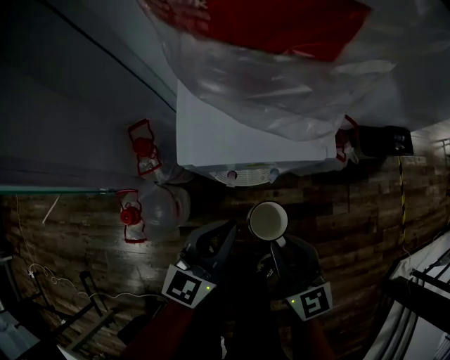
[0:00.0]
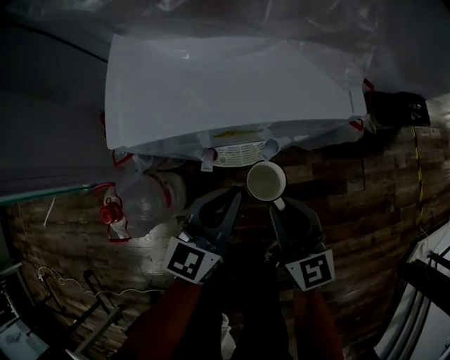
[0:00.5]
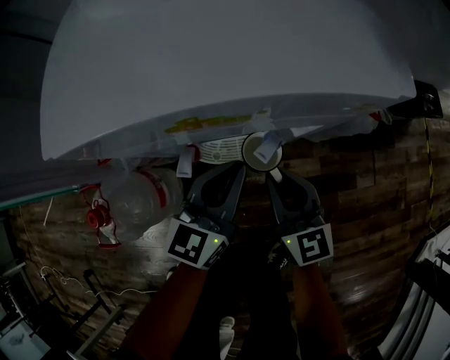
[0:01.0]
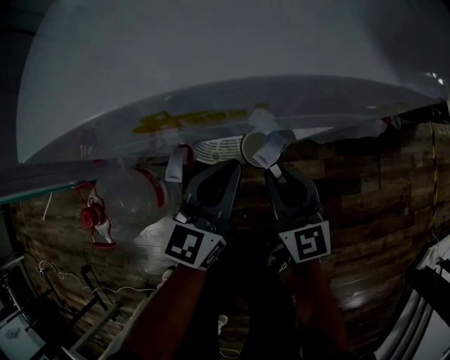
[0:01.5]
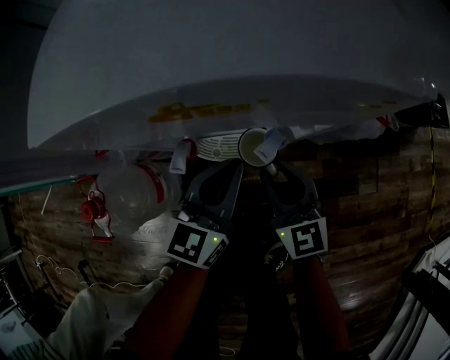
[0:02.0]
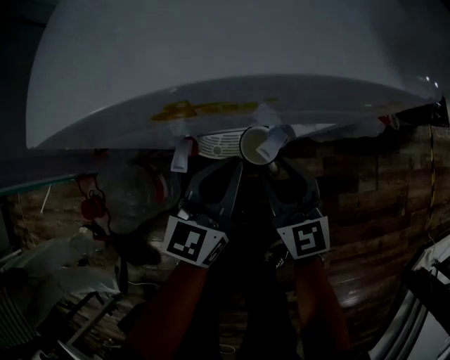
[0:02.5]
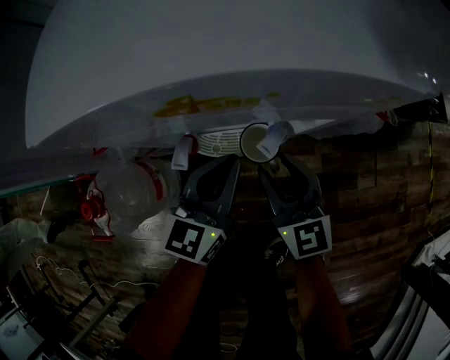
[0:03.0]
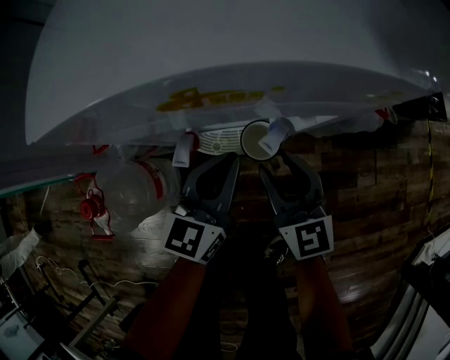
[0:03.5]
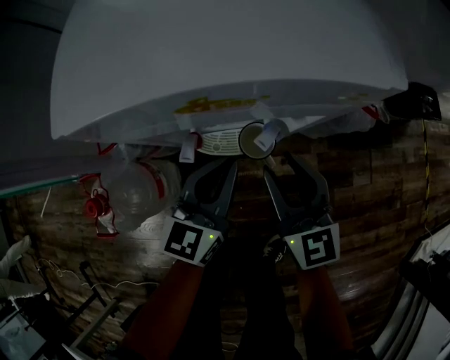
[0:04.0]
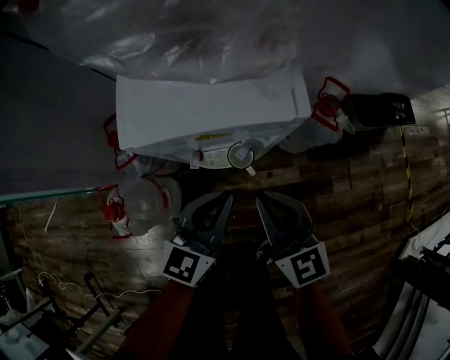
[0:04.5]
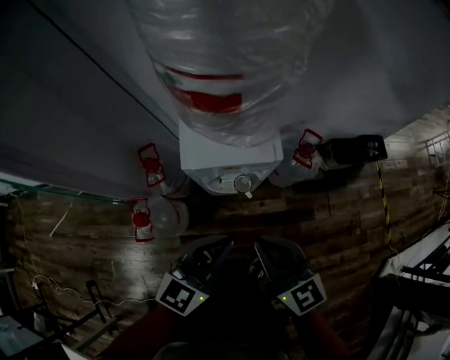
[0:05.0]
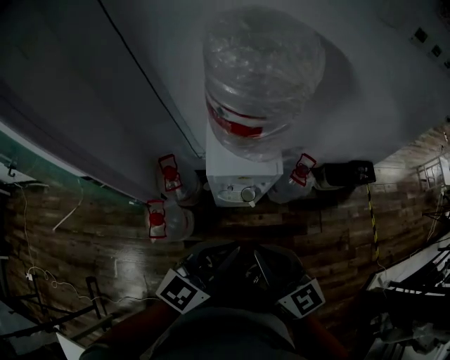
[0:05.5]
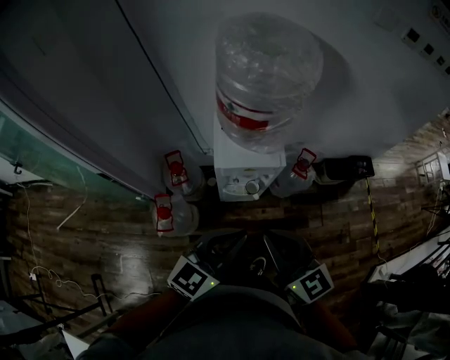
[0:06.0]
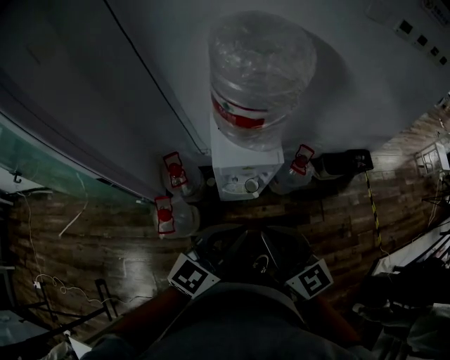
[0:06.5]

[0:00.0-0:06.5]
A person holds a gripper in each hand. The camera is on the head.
0:00.0 to 0:02.0: Both grippers move downward and forward, roughly 25 cm.
0:02.0 to 0:04.5: The right gripper travels upward by approximately 20 cm, and closes its fingers; the left gripper travels upward and backward by some 15 cm.
0:04.5 to 0:06.5: Both grippers travel together upward and backward, approximately 40 cm.

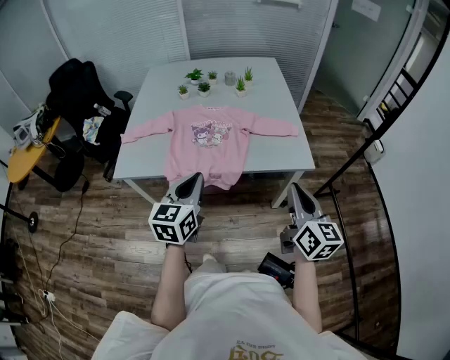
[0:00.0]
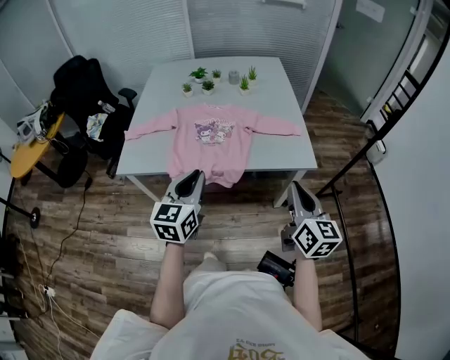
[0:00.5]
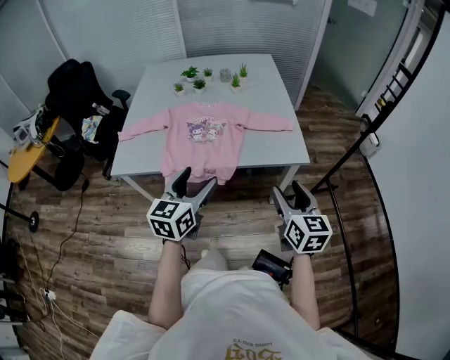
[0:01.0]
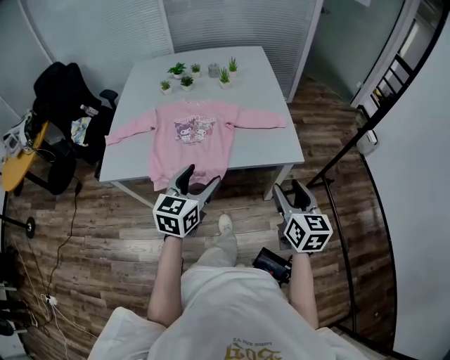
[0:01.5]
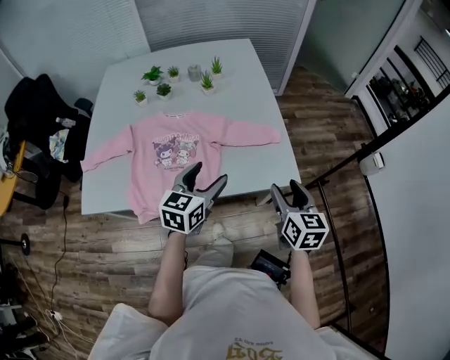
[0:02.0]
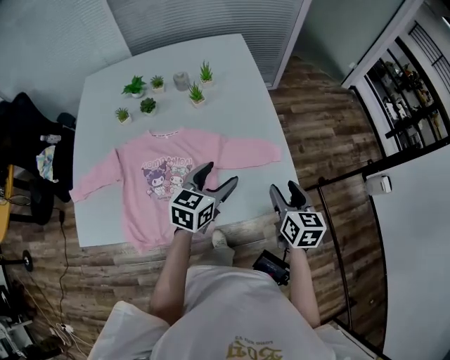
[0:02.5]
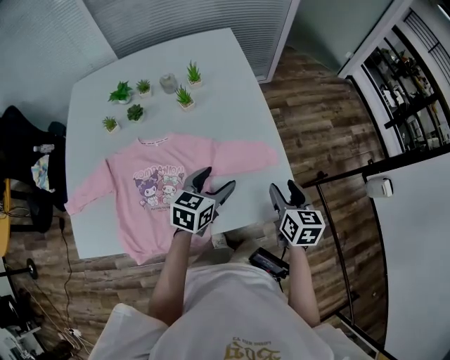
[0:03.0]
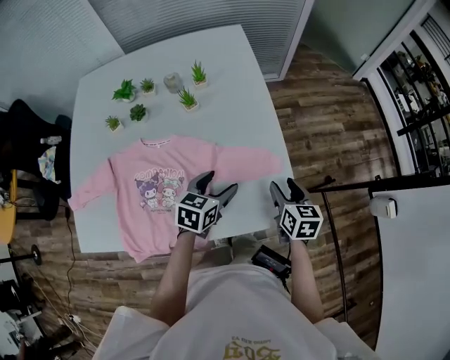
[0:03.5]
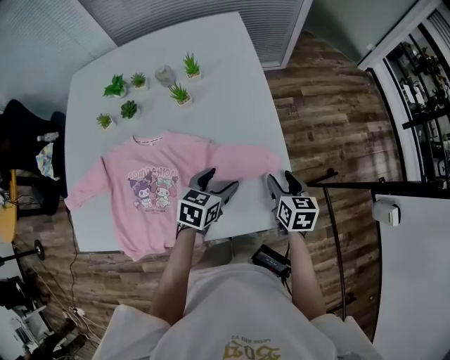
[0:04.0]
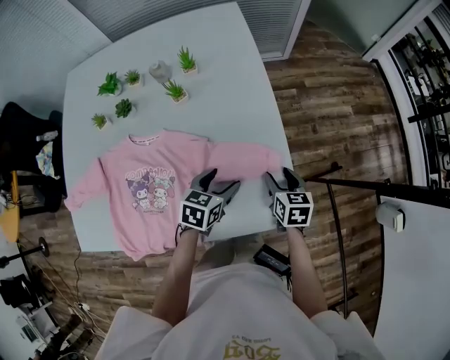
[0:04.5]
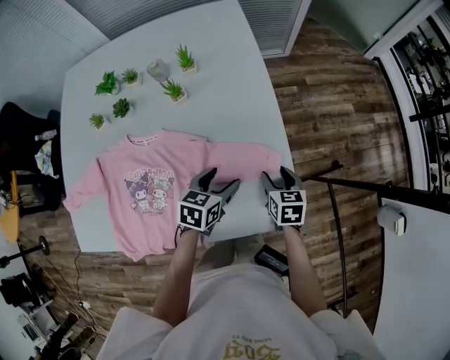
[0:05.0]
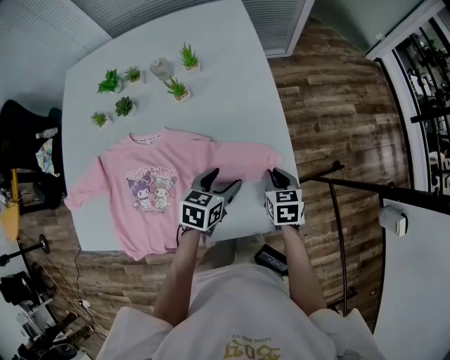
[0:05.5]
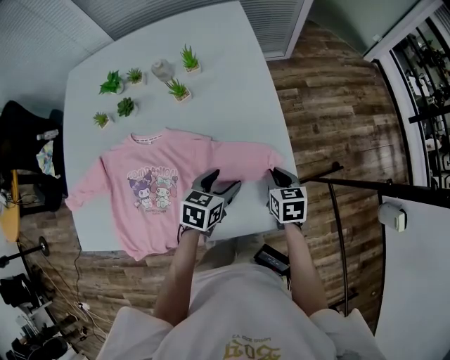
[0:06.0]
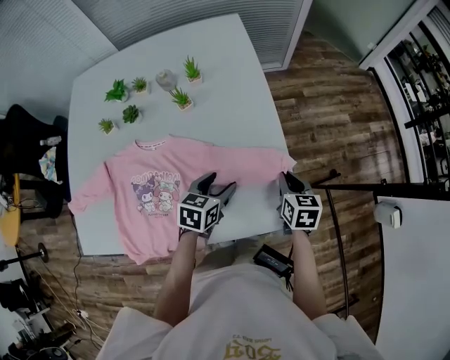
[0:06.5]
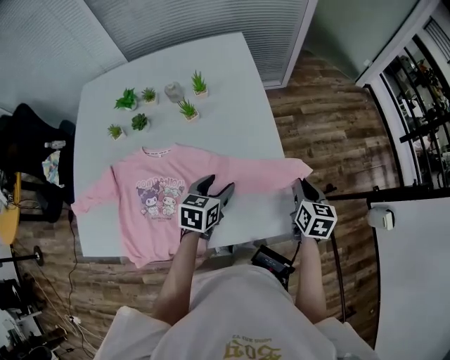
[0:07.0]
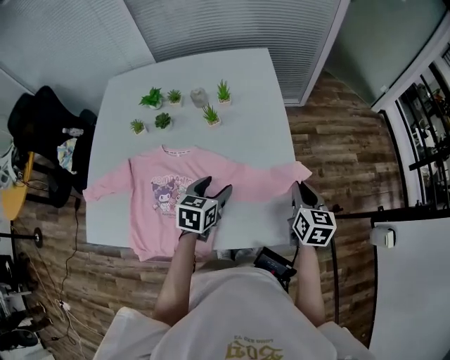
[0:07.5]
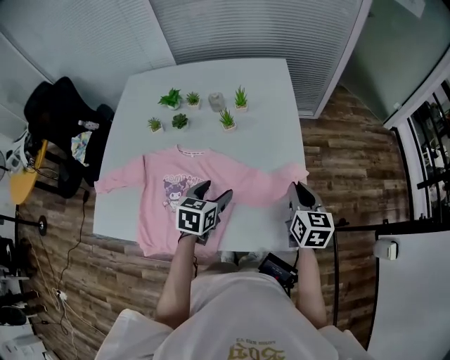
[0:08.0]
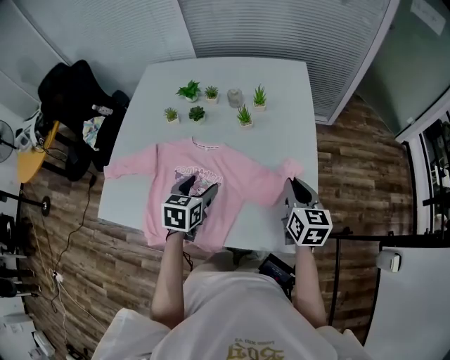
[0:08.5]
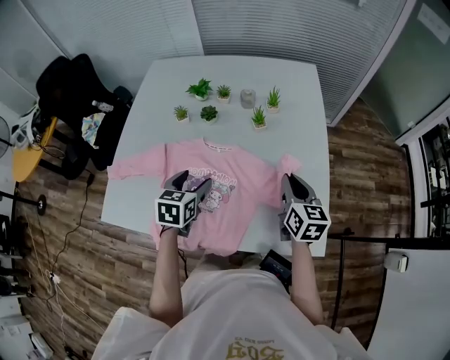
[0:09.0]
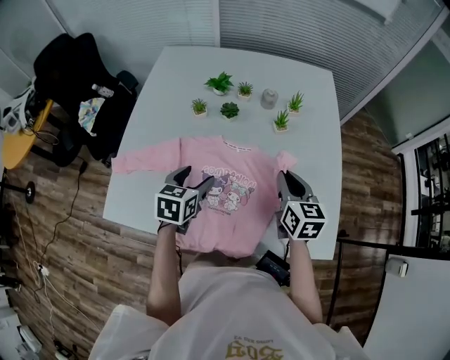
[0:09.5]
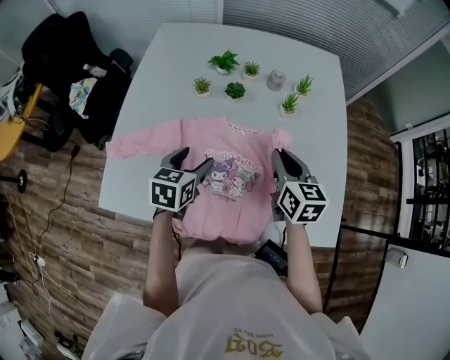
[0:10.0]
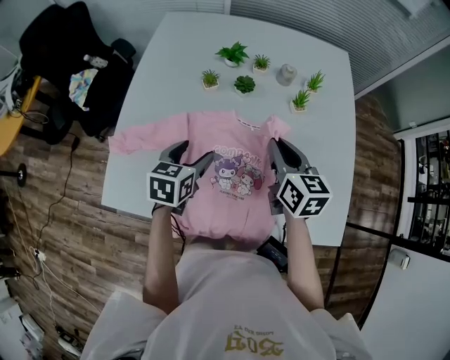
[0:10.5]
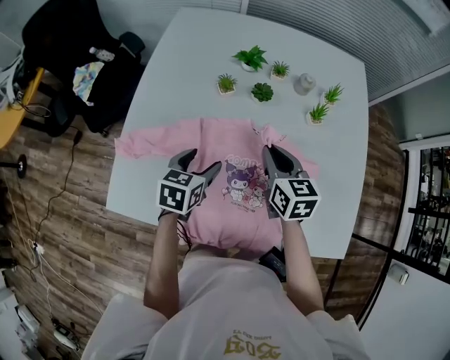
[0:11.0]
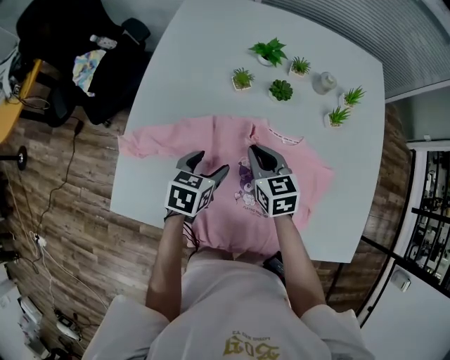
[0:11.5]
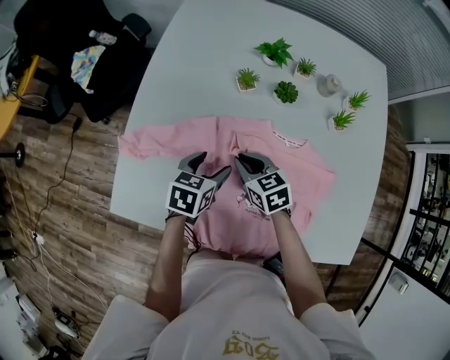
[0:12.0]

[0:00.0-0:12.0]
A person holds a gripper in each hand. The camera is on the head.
0:00.0 to 0:02.0: The left gripper goes some 25 cm forward and to the right, and opens; the right gripper moves forward and downward, some 20 cm, turns by some 20 degrees, and opens its fingers.
0:02.0 to 0:04.0: Both grippers travel together forward and downward, about 25 cm. The left gripper swivels some 20 degrees.
0:04.0 to 0:06.0: The right gripper ends up roughly 5 cm from where it was, and closes.
0:06.0 to 0:08.0: The right gripper heads upward, covering about 20 cm, and turns by some 20 degrees, while the left gripper moves upward and to the left, approximately 15 cm.
0:08.0 to 0:10.0: Both grippers travel together to the left, approximately 30 cm.
0:10.0 to 0:12.0: The left gripper shifts approximately 15 cm downward and to the left. Meanwhile the right gripper is displaced to the left and downward by roughly 30 cm, and swivels some 40 degrees.

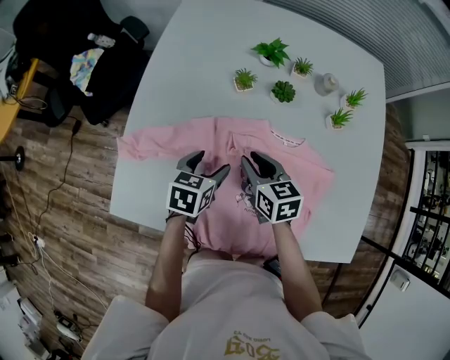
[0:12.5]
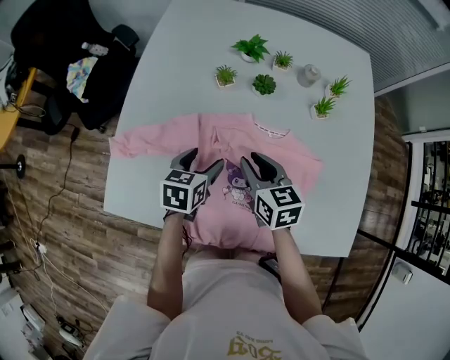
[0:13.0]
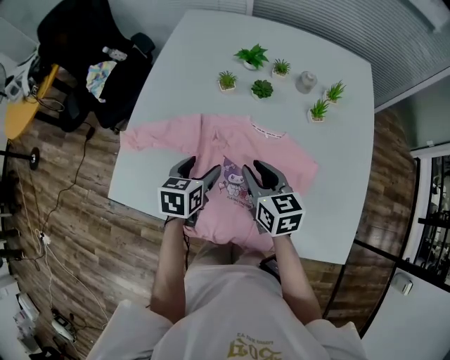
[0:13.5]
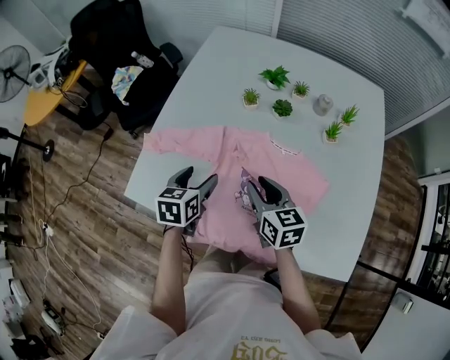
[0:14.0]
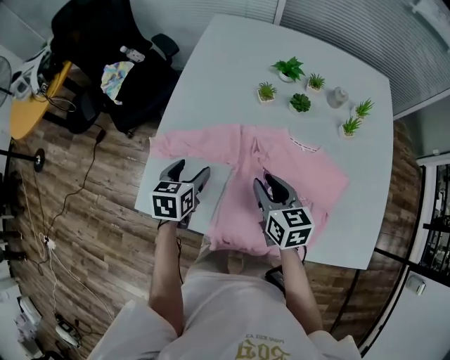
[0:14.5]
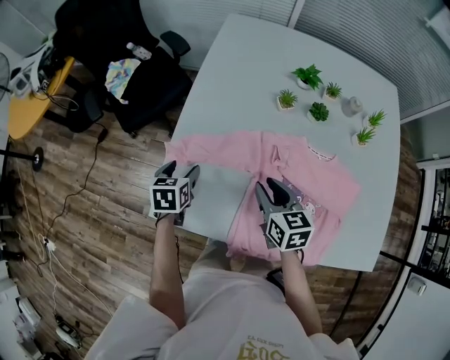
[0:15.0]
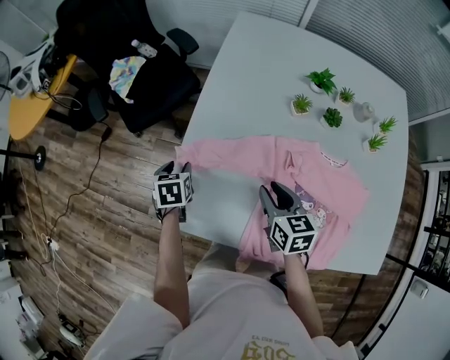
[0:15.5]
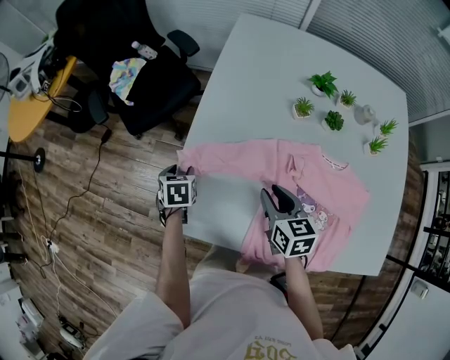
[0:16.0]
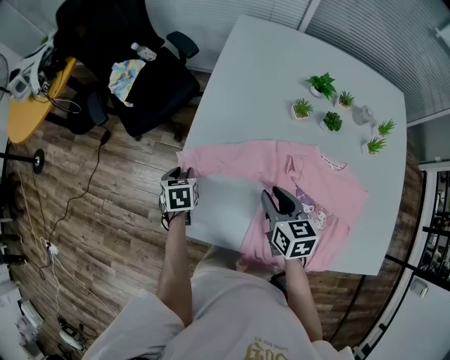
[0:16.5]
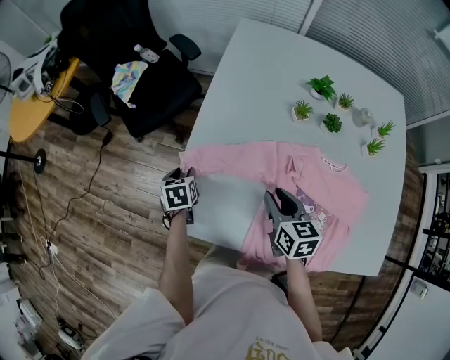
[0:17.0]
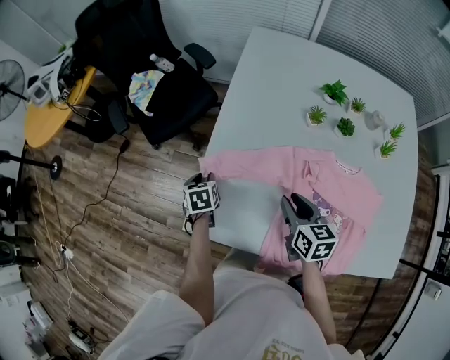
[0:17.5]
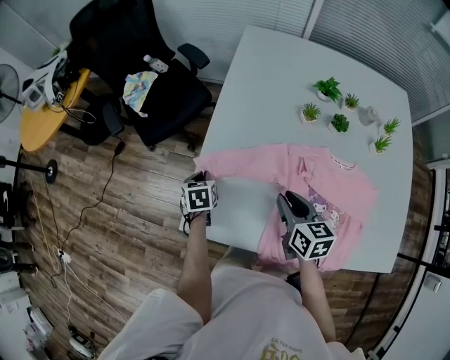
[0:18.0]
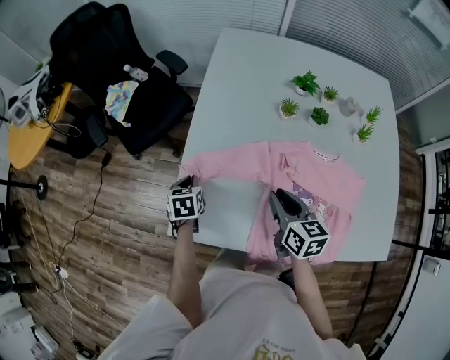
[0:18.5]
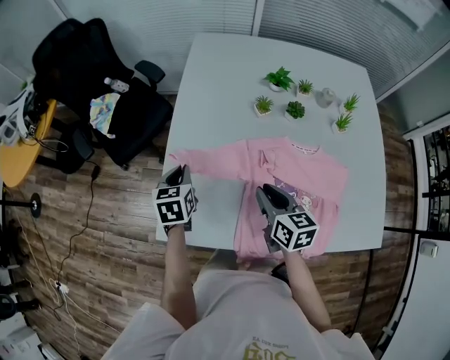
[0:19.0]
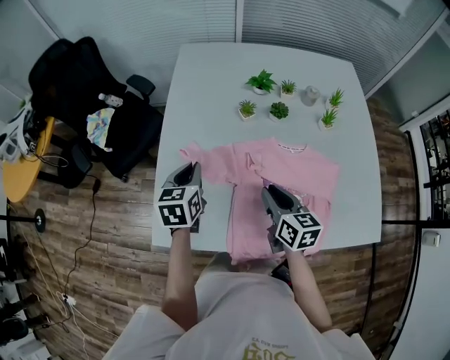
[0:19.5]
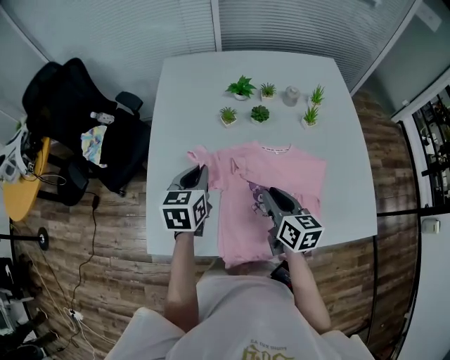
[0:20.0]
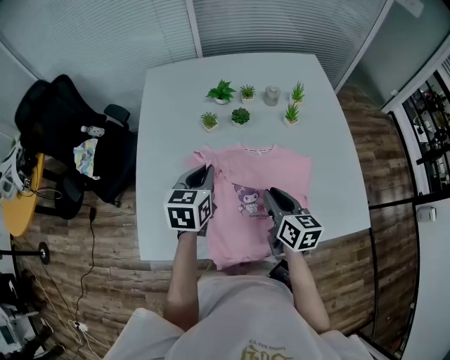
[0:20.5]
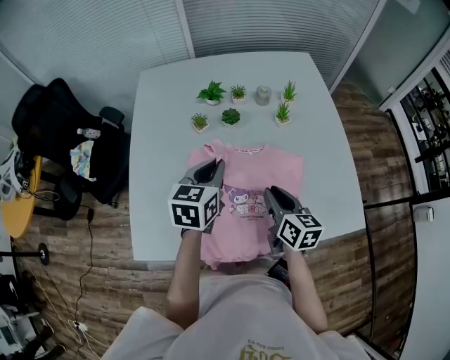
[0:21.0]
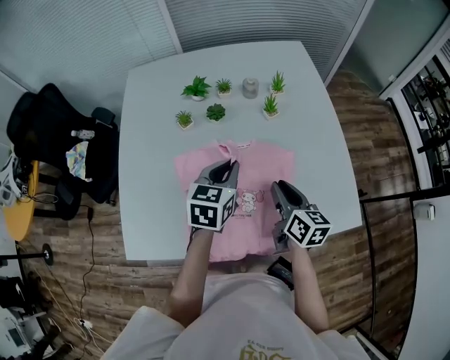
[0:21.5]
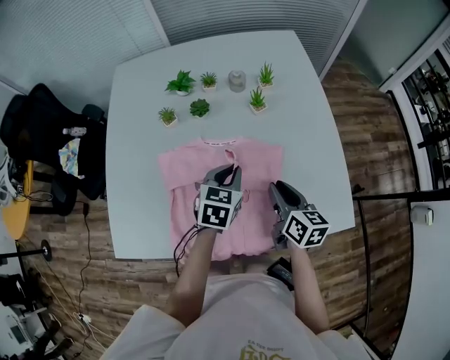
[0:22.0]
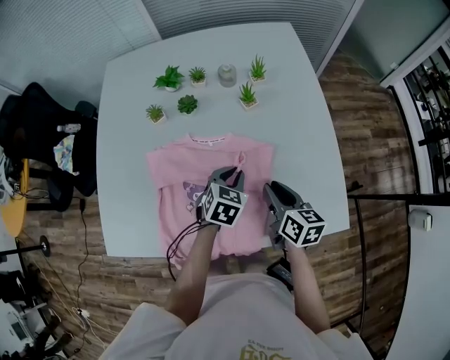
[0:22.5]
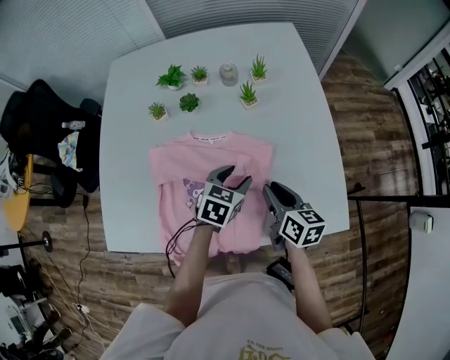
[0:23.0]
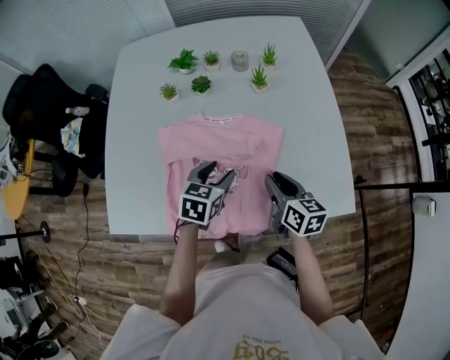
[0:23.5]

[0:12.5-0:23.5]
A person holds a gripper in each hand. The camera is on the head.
0:12.5 to 0:14.5: The right gripper goes about 10 cm backward and upward, and moves some 5 cm to the right and comes back; the left gripper goes roughly 15 cm to the left.
0:14.5 to 0:16.0: The right gripper heads to the left, covering approximately 10 cm. The left gripper is displaced to the left, downward and forward by approximately 20 cm, rotates about 20 degrees, and closes up.
0:16.0 to 0:18.0: The left gripper closes.
0:18.0 to 0:20.0: The left gripper shifts roughly 35 cm to the right and upward, and turns by roughly 30 degrees. The right gripper moves to the right, about 15 cm.
0:20.0 to 0:21.5: The grippers both shift to the right by some 20 cm.
0:21.5 to 0:23.5: The right gripper travels downward by about 5 cm. Meanwhile the left gripper moves downward and backward, some 10 cm, and opens its fingers.
